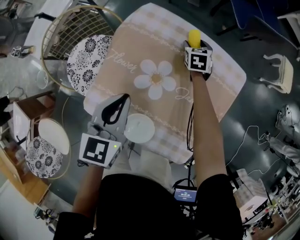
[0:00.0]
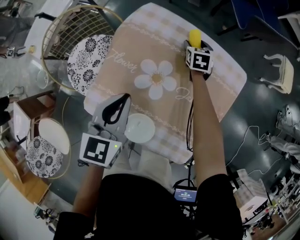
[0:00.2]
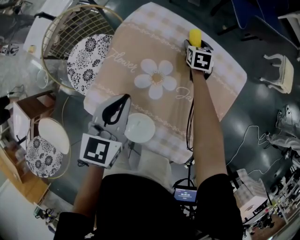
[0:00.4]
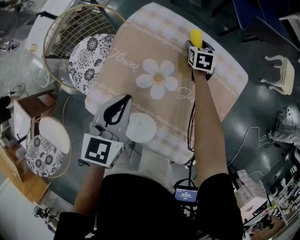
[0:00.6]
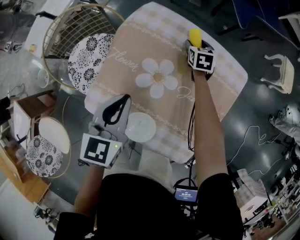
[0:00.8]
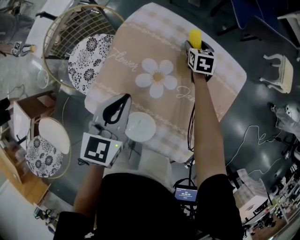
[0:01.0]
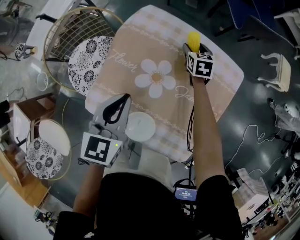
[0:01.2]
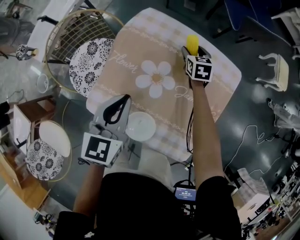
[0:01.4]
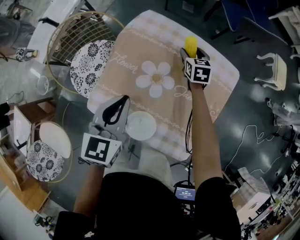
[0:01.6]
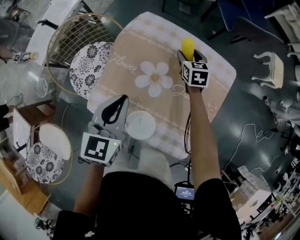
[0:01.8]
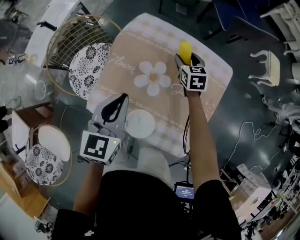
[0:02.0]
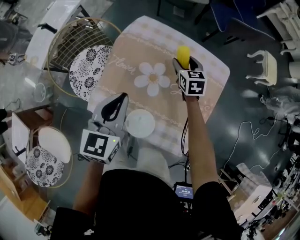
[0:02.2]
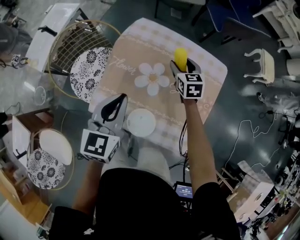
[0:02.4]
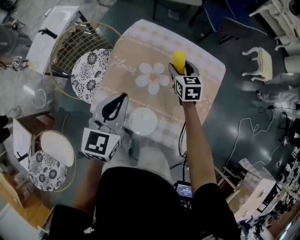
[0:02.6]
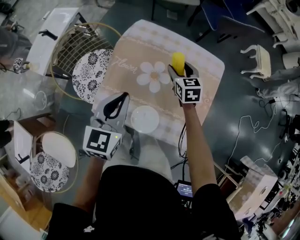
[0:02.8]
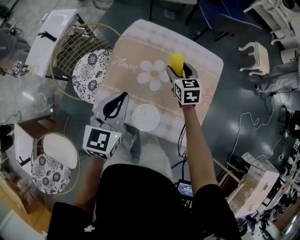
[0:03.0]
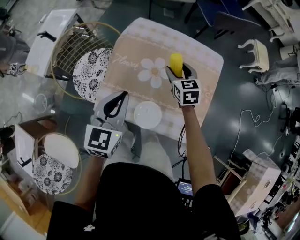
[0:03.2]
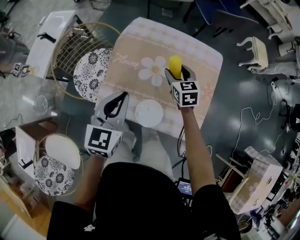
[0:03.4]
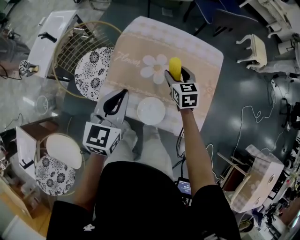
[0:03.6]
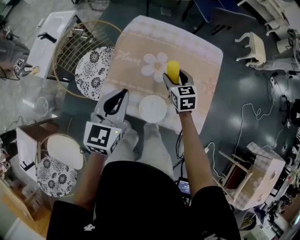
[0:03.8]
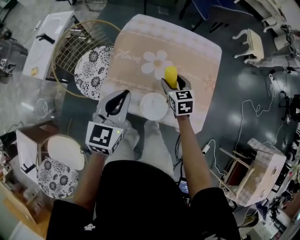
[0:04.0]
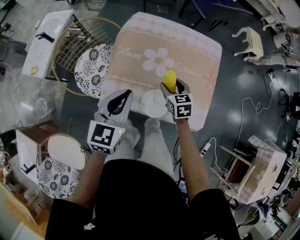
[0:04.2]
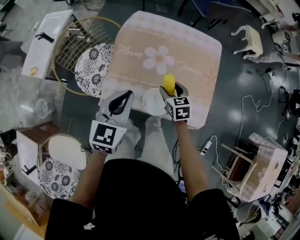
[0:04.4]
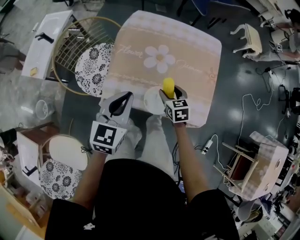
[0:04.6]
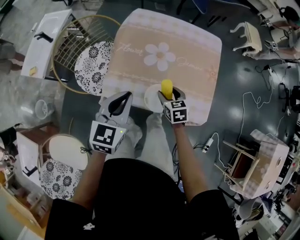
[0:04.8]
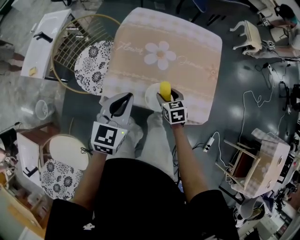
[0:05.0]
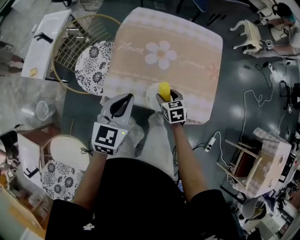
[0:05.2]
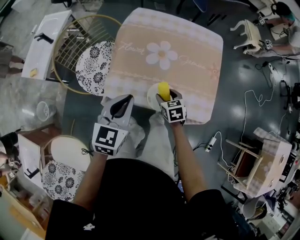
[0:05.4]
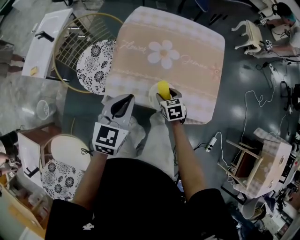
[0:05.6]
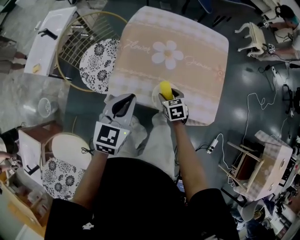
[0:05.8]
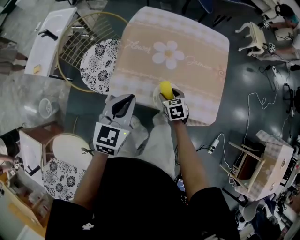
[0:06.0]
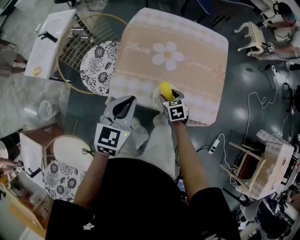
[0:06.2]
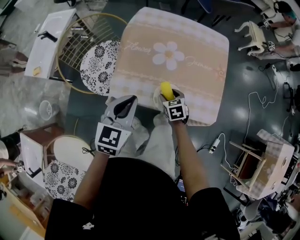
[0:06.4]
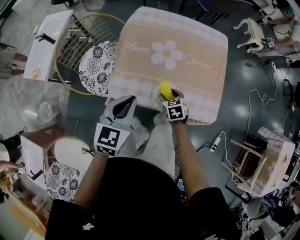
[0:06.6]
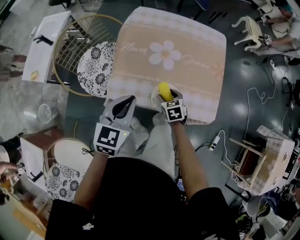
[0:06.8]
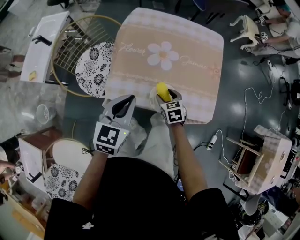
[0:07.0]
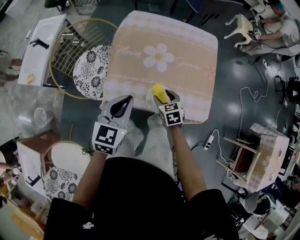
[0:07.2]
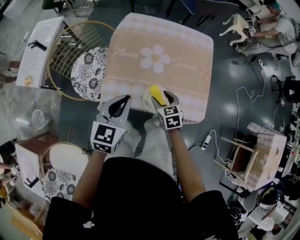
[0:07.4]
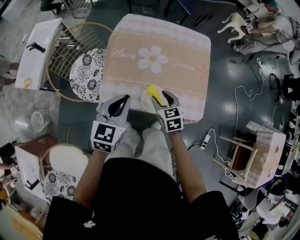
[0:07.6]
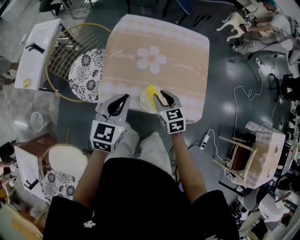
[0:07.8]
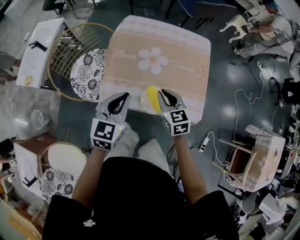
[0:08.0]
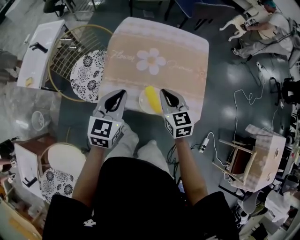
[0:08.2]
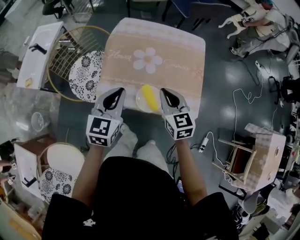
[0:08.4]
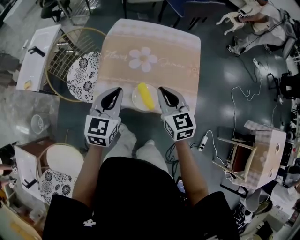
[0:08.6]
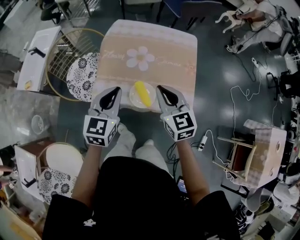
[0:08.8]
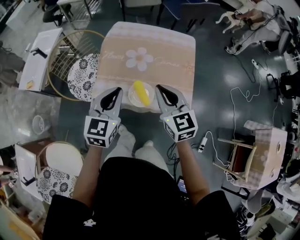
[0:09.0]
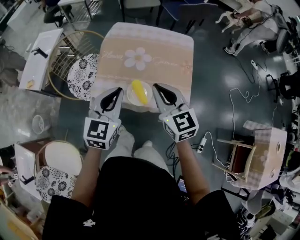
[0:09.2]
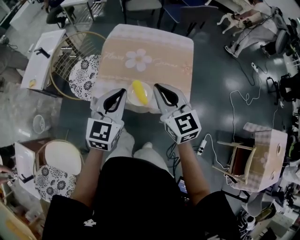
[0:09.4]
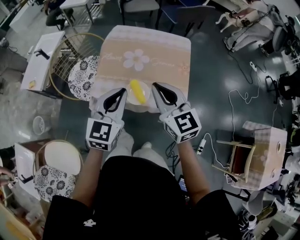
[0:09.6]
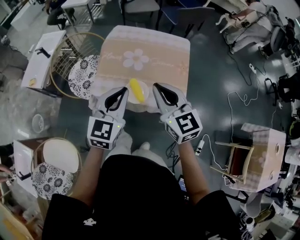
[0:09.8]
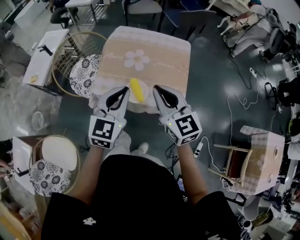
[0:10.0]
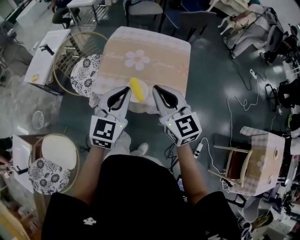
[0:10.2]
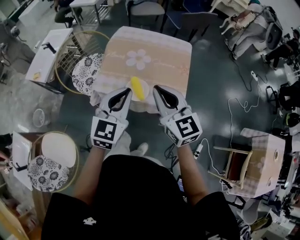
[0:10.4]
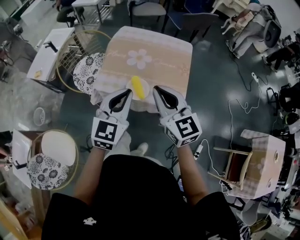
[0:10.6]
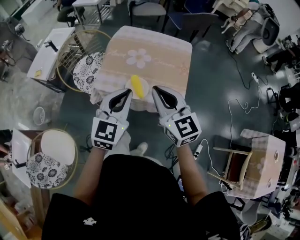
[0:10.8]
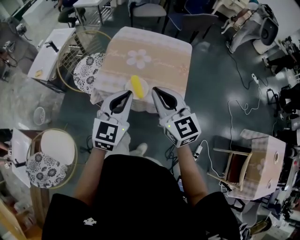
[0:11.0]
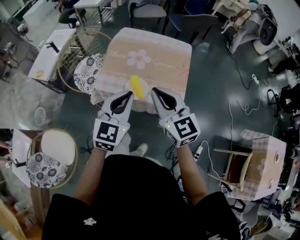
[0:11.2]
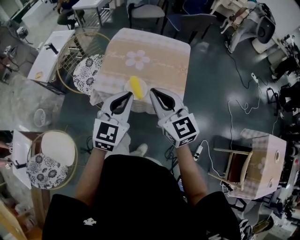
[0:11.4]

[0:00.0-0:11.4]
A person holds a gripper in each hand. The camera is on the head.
0.0 to 1.4 s: The right gripper shifts by approximately 5 cm.
1.4 to 2.8 s: The left gripper goes about 5 cm upward. Meanwhile the right gripper heads backward and upward, covering about 20 cm.
2.8 to 4.2 s: The right gripper shifts approximately 20 cm backward. The left gripper is displaced backward by roughly 10 cm.
4.2 to 5.6 s: The right gripper goes approximately 15 cm downward and backward; the left gripper is displaced downward and backward by about 5 cm.
5.6 to 7.2 s: The grippers move only a little.
7.2 to 8.6 s: The right gripper shifts some 20 cm upward, changes its angle by approximately 30 degrees, and closes its fingers; the left gripper ends up some 5 cm from where it was.
8.6 to 10.0 s: The left gripper travels backward, upward and to the right by approximately 15 cm. The right gripper shifts some 15 cm upward and backward.
10.0 to 11.4 s: The two grippers go roughly 5 cm backward.

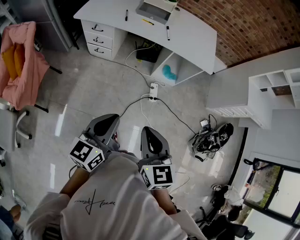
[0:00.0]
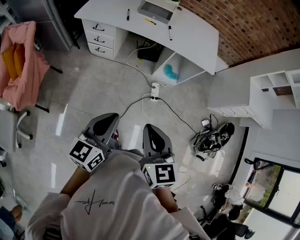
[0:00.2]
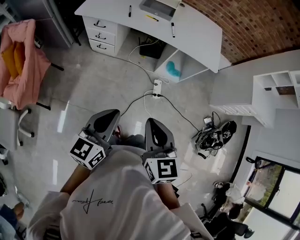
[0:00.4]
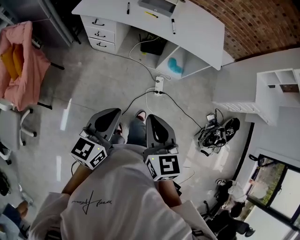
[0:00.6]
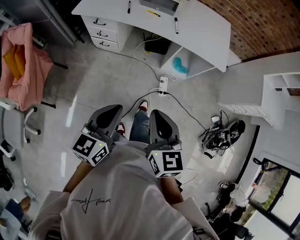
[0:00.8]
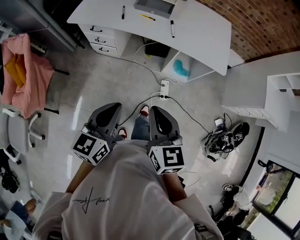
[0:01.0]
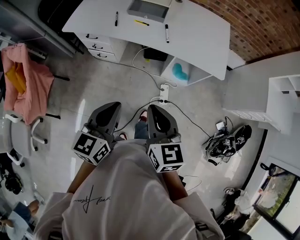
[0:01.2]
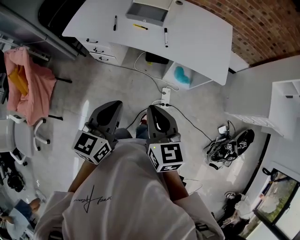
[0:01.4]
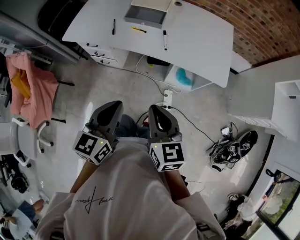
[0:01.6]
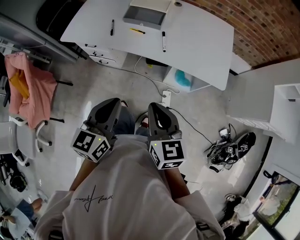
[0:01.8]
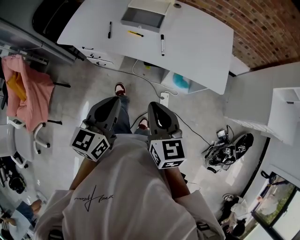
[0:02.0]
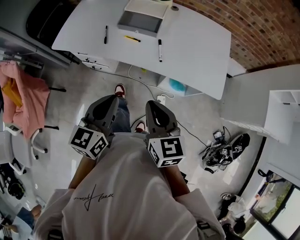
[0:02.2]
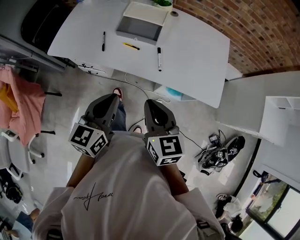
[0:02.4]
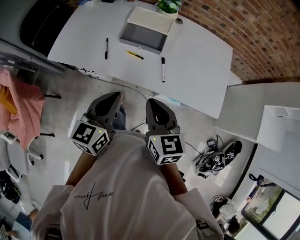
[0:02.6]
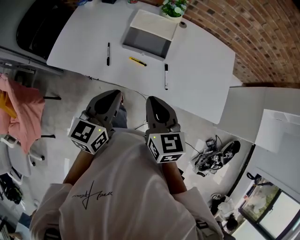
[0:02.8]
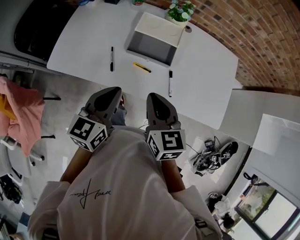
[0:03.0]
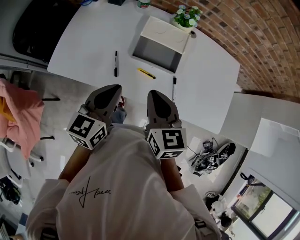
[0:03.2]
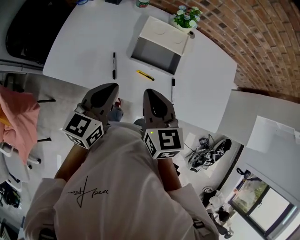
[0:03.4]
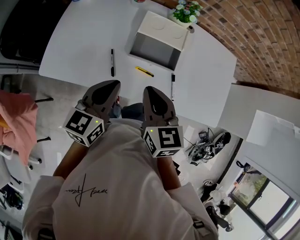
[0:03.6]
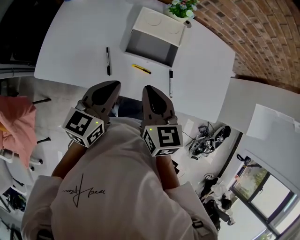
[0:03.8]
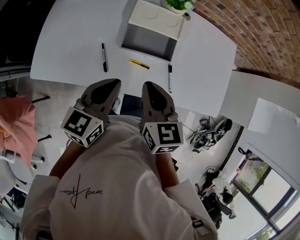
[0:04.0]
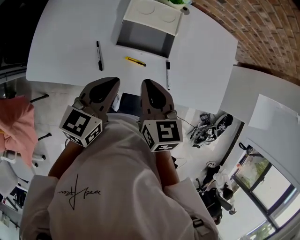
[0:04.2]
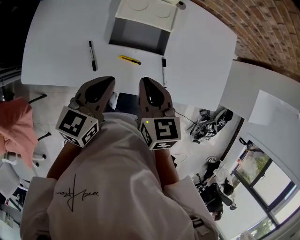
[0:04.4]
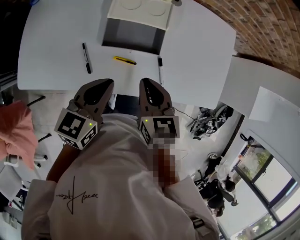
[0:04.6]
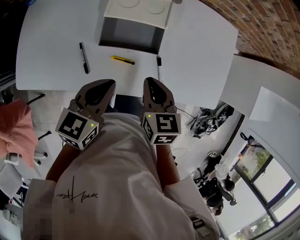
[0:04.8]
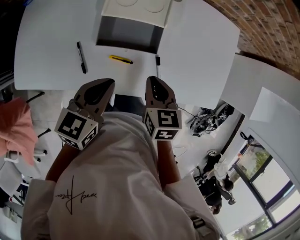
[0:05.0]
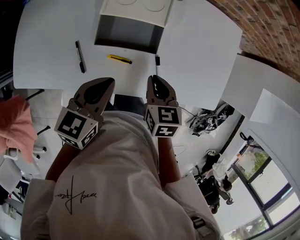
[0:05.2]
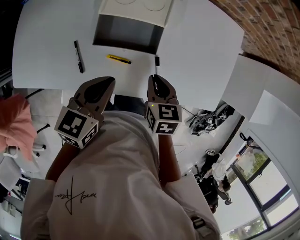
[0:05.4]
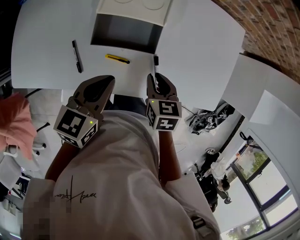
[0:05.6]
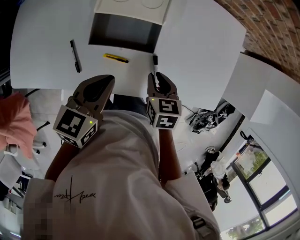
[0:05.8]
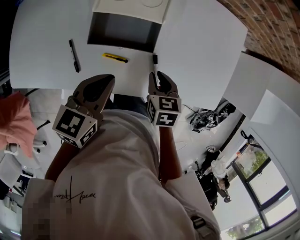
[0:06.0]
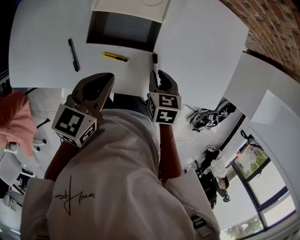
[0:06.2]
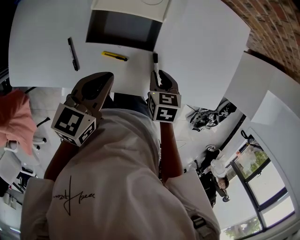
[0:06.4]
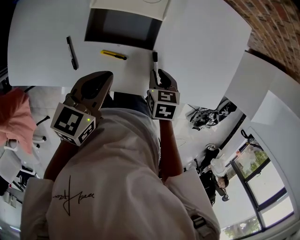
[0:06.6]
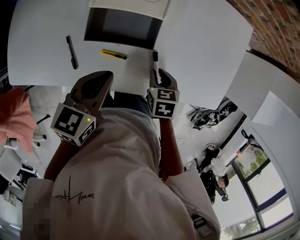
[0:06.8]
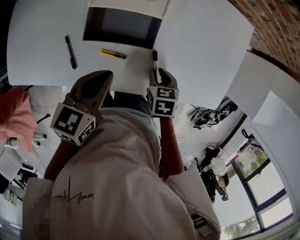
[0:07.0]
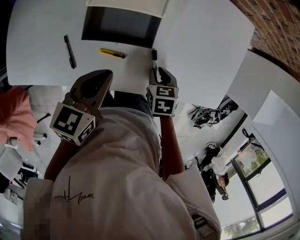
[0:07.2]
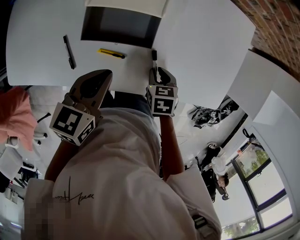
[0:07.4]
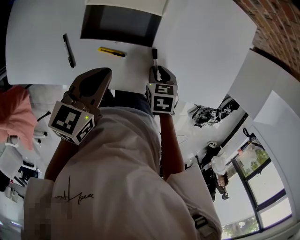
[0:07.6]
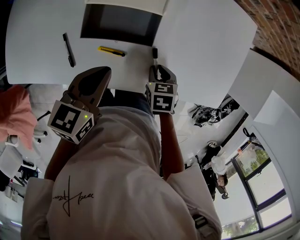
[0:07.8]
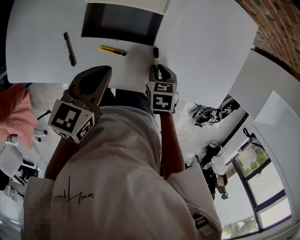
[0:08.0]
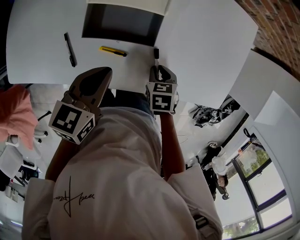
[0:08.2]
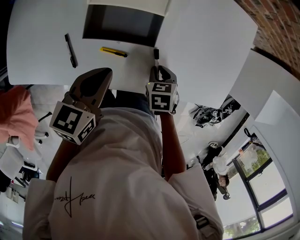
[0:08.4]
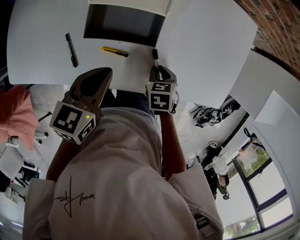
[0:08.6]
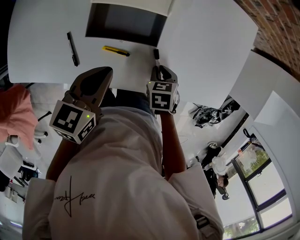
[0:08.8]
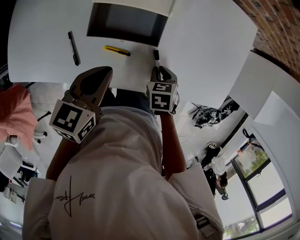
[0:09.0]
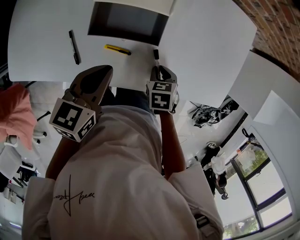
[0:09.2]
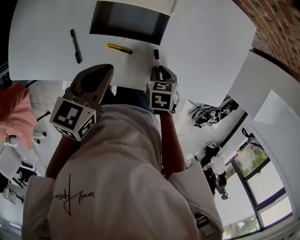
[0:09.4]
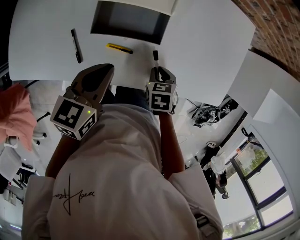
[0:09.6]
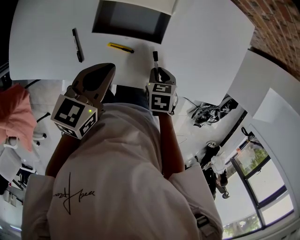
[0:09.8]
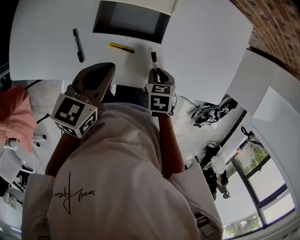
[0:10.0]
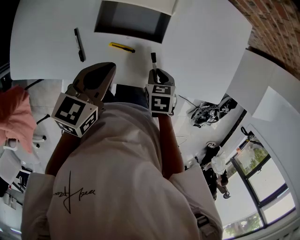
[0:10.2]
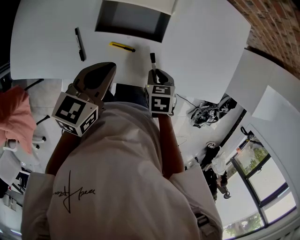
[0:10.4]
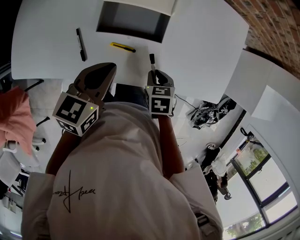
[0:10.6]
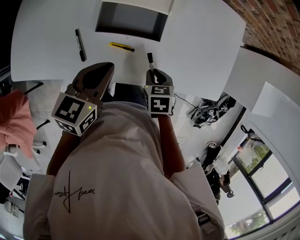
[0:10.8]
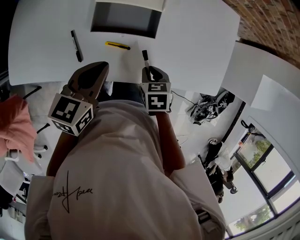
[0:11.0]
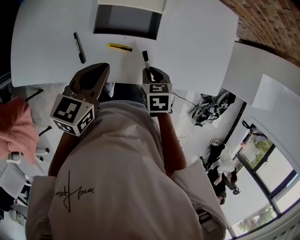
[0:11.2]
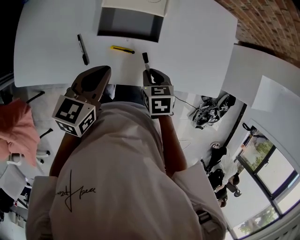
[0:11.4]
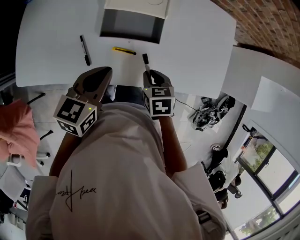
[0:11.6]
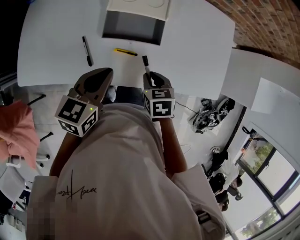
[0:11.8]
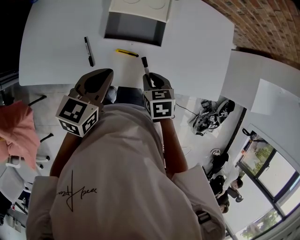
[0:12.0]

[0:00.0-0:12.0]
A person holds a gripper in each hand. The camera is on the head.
0.0 to 1.6 s: Both grippers move forward, some 30 cm.
1.6 to 3.0 s: The grippers both shift forward by roughly 35 cm.
3.0 to 4.4 s: Both grippers move forward and downward, approximately 10 cm.
4.4 to 6.0 s: The right gripper goes roughly 20 cm downward and to the right, and changes its angle by about 20 degrees; the left gripper is displaced to the right and forward by approximately 10 cm.
6.0 to 7.6 s: The right gripper travels downward by some 5 cm.
7.6 to 10.4 s: The grippers make only small movements.
10.4 to 12.0 s: The left gripper changes place by roughly 5 cm. Meanwhile the right gripper shifts about 10 cm upward and to the left.

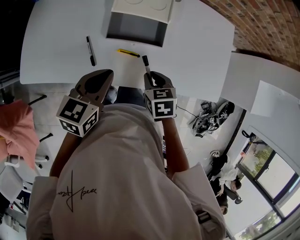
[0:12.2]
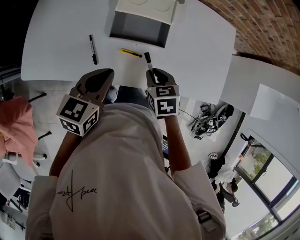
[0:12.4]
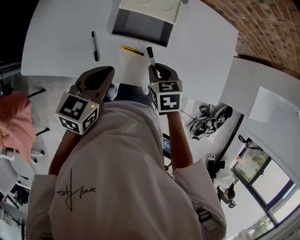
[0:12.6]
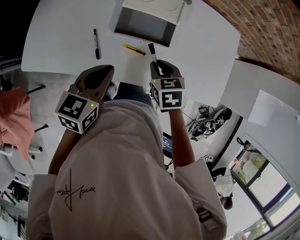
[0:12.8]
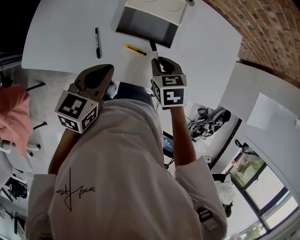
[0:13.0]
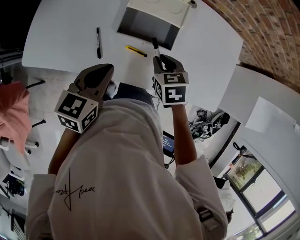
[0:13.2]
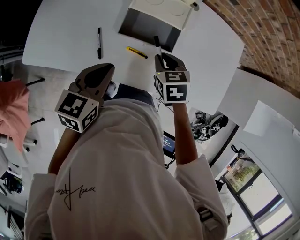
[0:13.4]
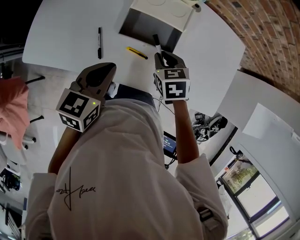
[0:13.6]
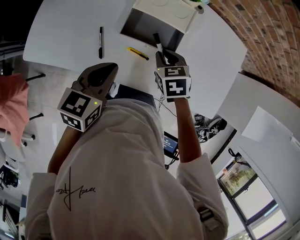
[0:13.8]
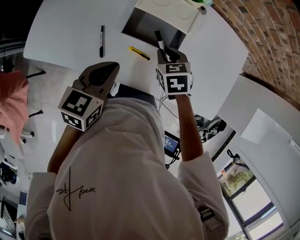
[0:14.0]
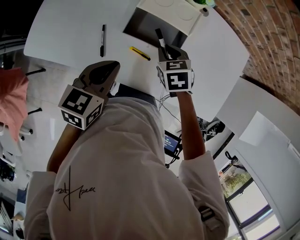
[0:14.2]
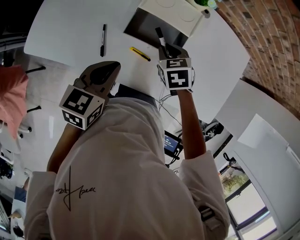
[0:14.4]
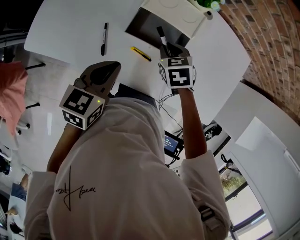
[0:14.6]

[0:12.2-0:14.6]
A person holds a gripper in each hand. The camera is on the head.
12.2 to 13.4 s: The right gripper shifts some 10 cm forward.
13.4 to 14.6 s: The right gripper travels forward by roughly 5 cm.
